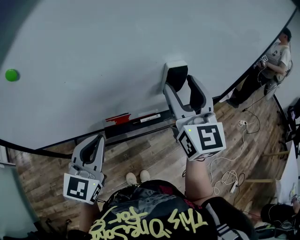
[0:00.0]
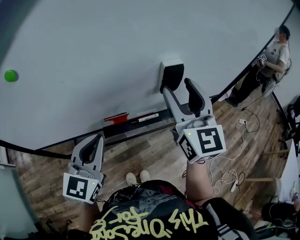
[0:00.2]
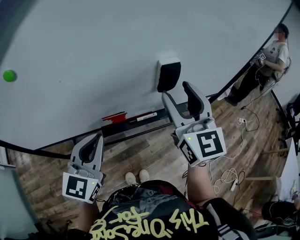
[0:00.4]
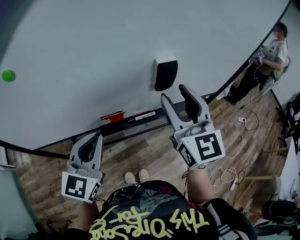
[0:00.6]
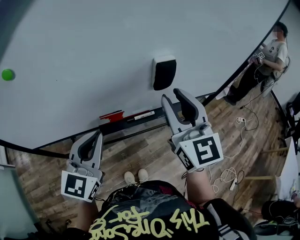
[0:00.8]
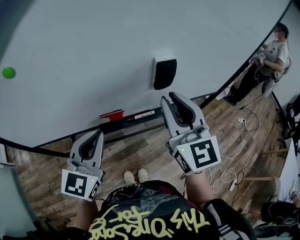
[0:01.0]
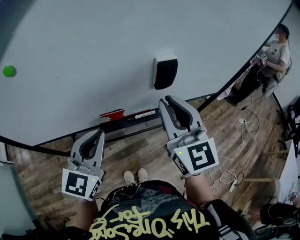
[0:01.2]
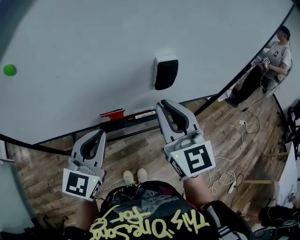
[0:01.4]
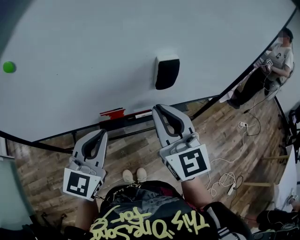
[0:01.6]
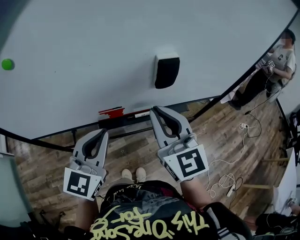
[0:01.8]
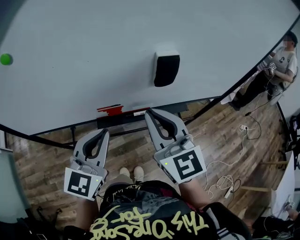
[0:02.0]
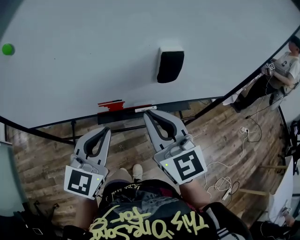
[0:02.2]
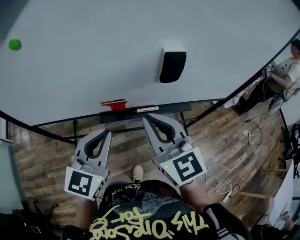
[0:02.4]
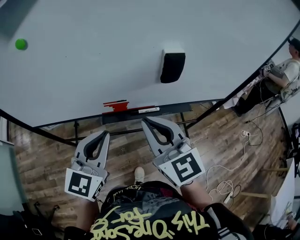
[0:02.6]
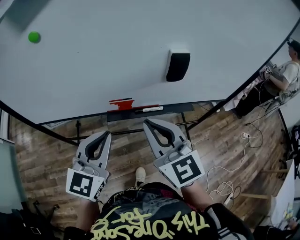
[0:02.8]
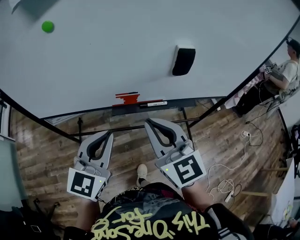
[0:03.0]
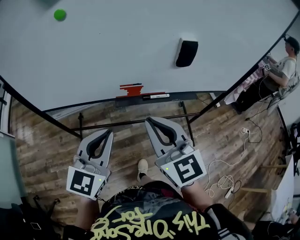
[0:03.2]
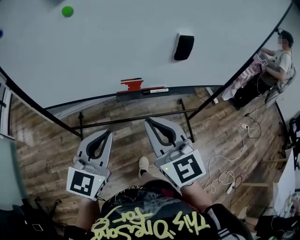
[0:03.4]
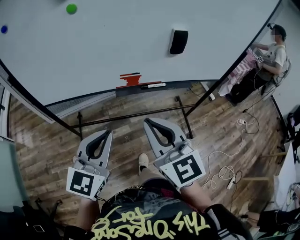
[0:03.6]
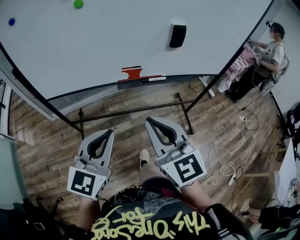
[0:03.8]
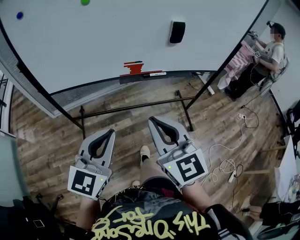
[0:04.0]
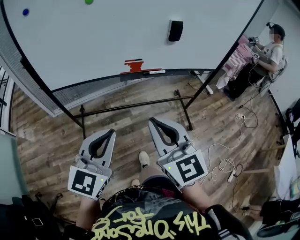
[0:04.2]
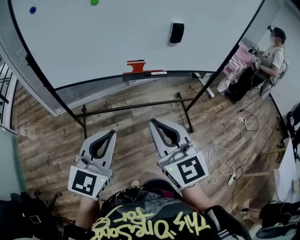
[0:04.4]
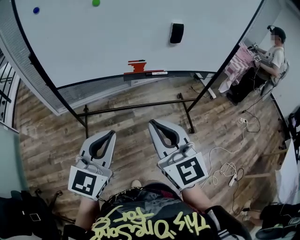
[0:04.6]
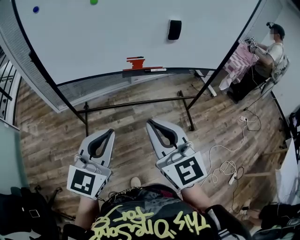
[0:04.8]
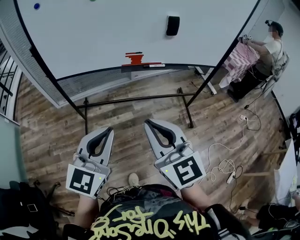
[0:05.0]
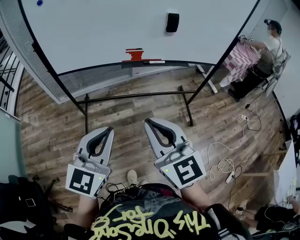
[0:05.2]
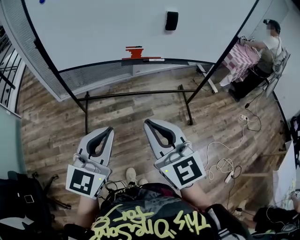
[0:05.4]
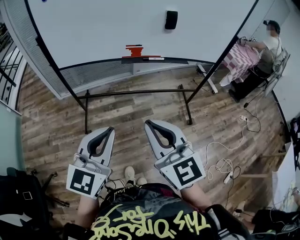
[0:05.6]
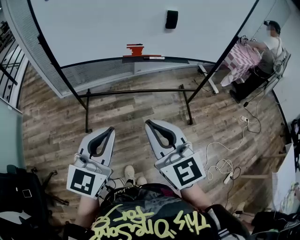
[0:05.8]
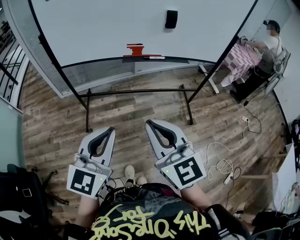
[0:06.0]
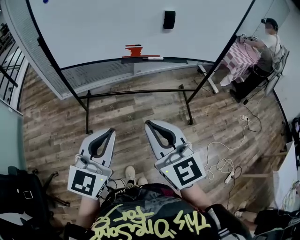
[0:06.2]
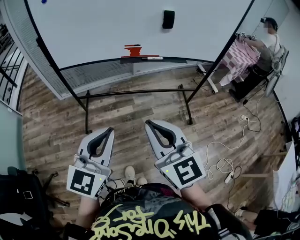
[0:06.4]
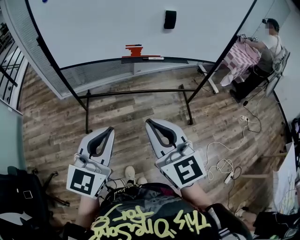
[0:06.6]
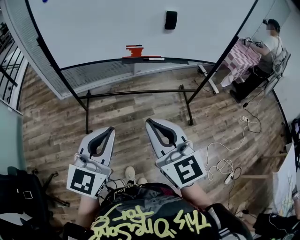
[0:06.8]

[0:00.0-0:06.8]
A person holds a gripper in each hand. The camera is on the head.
0:00.0 to 0:01.4: The right gripper moves backward, roughly 5 cm, and closes its fingers.
0:01.4 to 0:02.8: The right gripper shifts approximately 10 cm to the left and backward. Meanwhile the left gripper moves backward, roughly 5 cm.
0:02.8 to 0:04.0: Both grippers travel together backward, roughly 20 cm.
0:04.0 to 0:05.4: Both grippers move backward, about 15 cm.
0:05.4 to 0:06.8: The grippers move only a little.

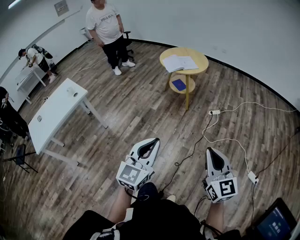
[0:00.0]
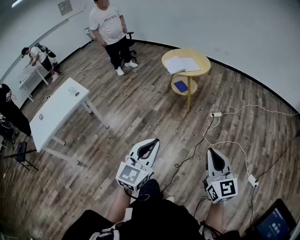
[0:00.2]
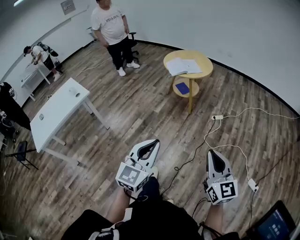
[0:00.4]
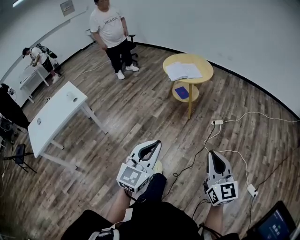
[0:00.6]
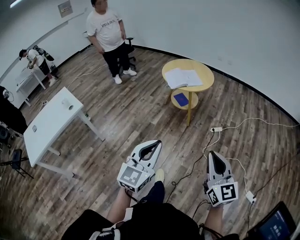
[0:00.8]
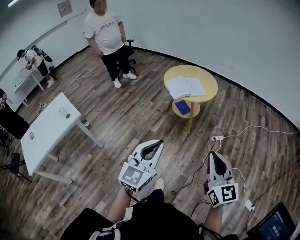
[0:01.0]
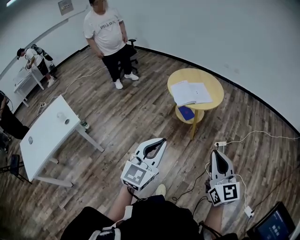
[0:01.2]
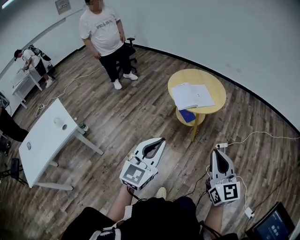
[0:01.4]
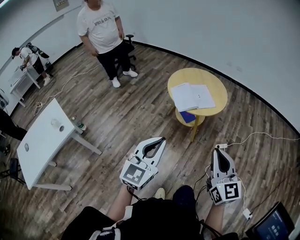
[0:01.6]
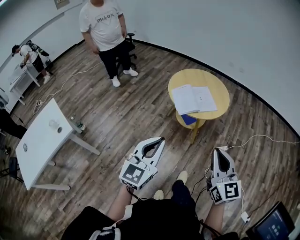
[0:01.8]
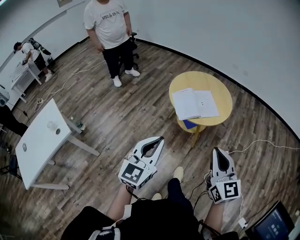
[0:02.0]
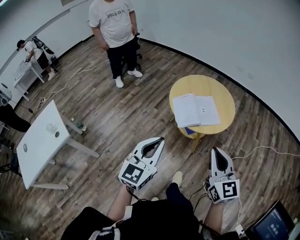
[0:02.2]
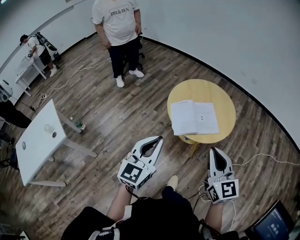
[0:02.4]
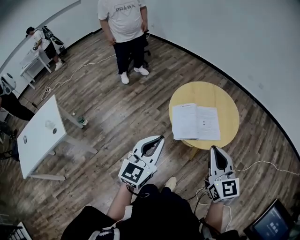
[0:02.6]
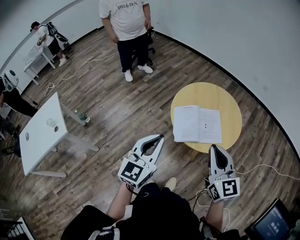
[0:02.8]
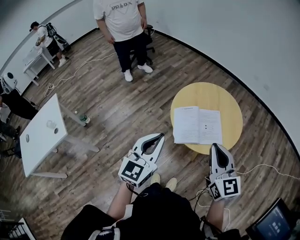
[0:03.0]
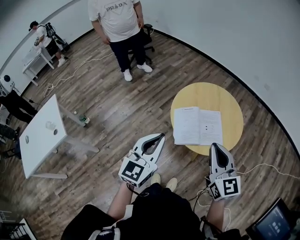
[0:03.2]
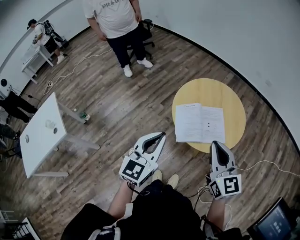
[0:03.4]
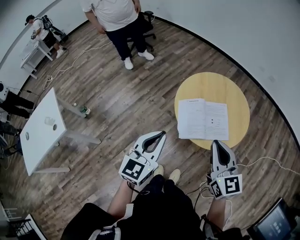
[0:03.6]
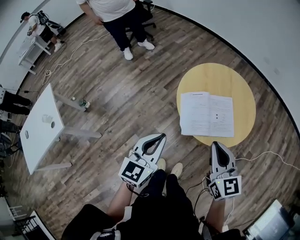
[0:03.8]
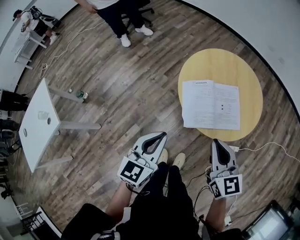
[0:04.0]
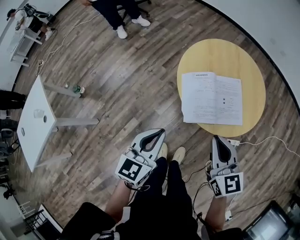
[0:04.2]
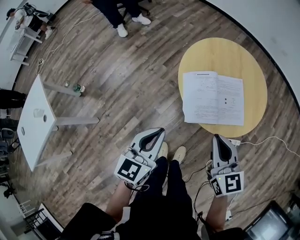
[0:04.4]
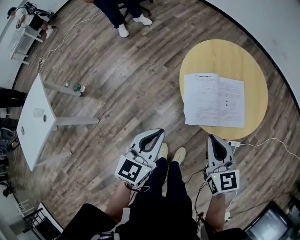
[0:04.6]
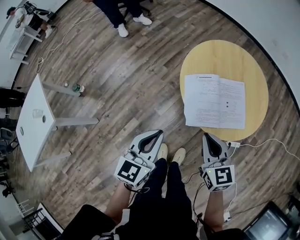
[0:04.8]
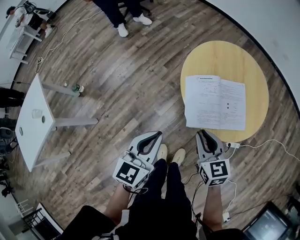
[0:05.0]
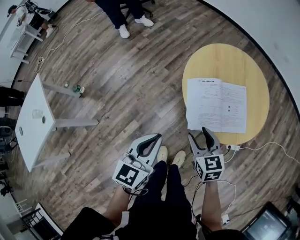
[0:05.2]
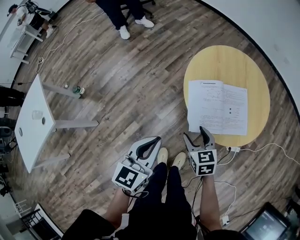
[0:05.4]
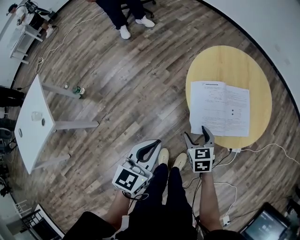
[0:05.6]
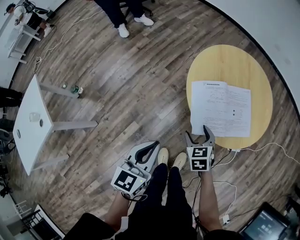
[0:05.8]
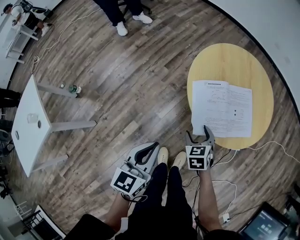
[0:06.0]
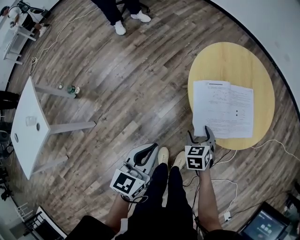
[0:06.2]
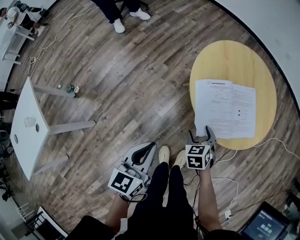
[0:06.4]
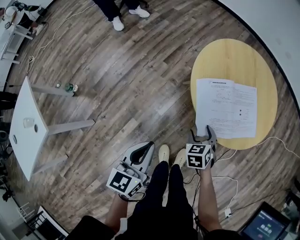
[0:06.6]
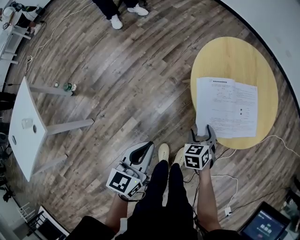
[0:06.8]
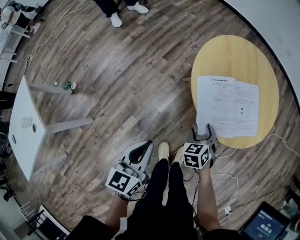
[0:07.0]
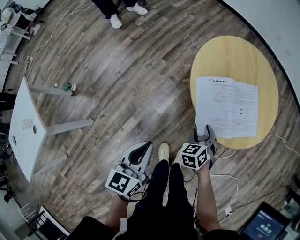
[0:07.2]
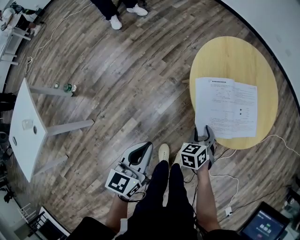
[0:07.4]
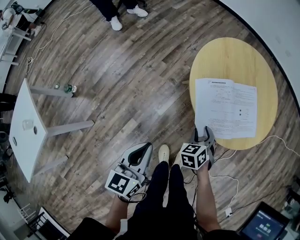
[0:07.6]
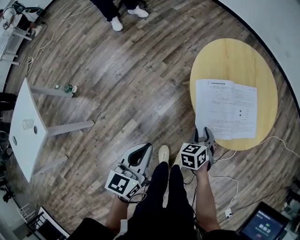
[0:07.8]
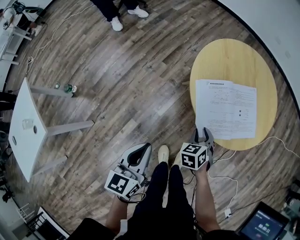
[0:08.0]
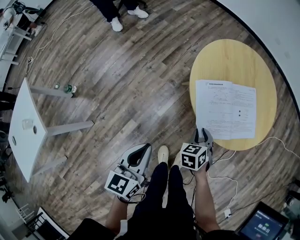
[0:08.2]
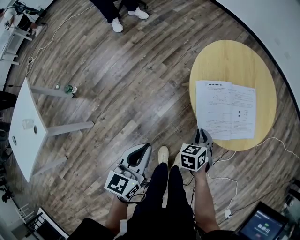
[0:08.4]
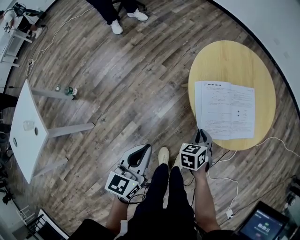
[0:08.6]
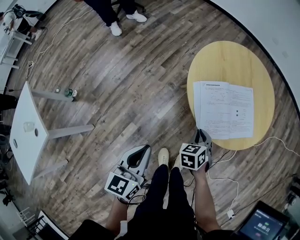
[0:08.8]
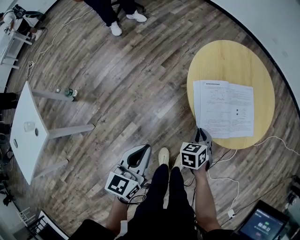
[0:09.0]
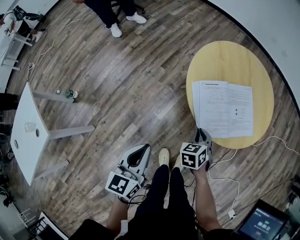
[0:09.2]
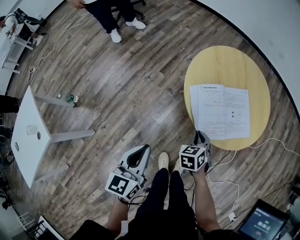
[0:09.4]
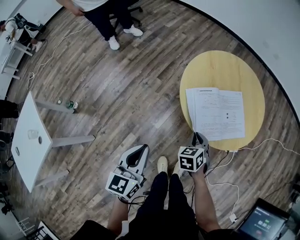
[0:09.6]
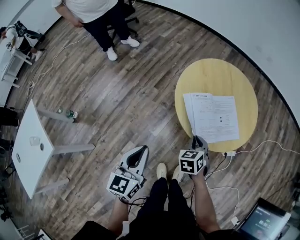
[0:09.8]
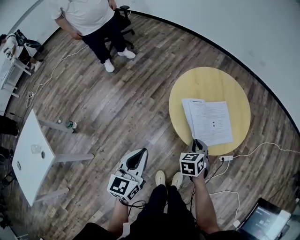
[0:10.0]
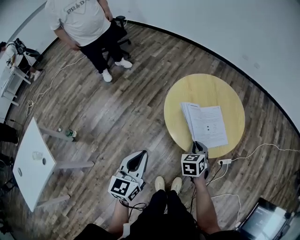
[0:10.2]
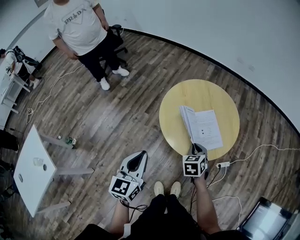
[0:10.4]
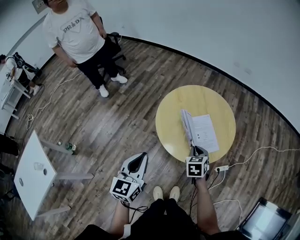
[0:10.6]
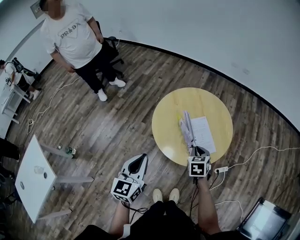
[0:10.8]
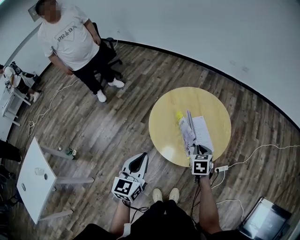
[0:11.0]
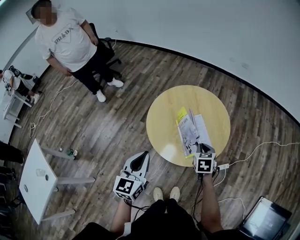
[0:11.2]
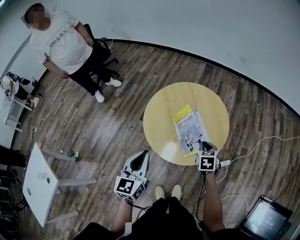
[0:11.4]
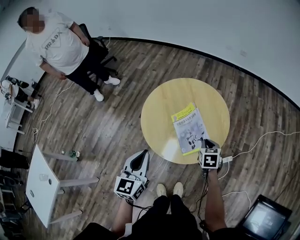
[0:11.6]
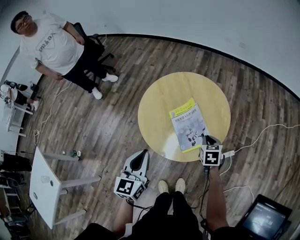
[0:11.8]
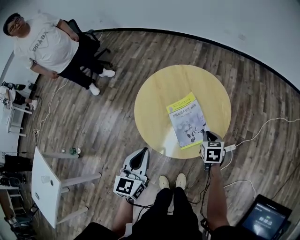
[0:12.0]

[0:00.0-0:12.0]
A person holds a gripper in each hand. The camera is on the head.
0:00.0 to 0:01.6: Both grippers are carried forward, roughly 50 cm.
0:01.6 to 0:03.0: Both grippers move forward, about 35 cm.
0:03.0 to 0:04.4: Both grippers travel together downward, roughly 15 cm.
0:04.4 to 0:06.0: The left gripper shifts about 10 cm to the left and downward, while the right gripper is displaced downward and to the left by roughly 25 cm, tilts its fingers about 30 degrees downward, and opens its fingers.
0:06.0 to 0:07.6: The left gripper moves approximately 5 cm; the right gripper closes.
0:07.6 to 0:09.0: The right gripper closes.
0:09.0 to 0:10.4: The right gripper travels upward and to the right by about 15 cm, while the left gripper moves upward and forward, about 15 cm.
0:10.4 to 0:12.0: Both grippers move to the right and forward, some 20 cm. The right gripper turns by about 20 degrees.

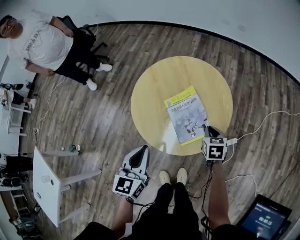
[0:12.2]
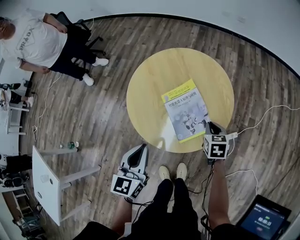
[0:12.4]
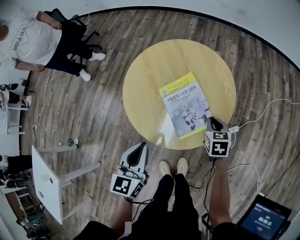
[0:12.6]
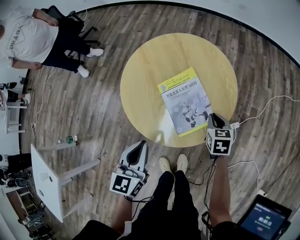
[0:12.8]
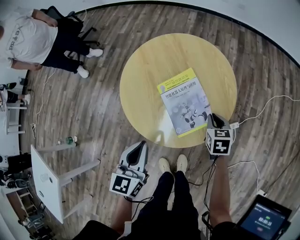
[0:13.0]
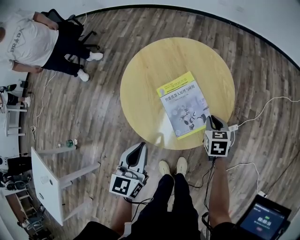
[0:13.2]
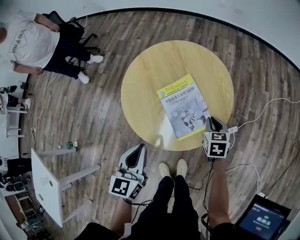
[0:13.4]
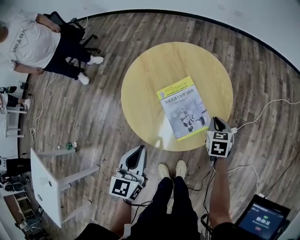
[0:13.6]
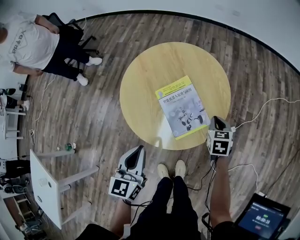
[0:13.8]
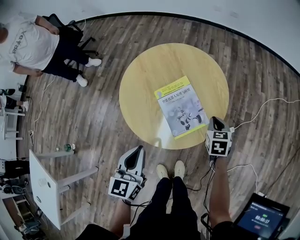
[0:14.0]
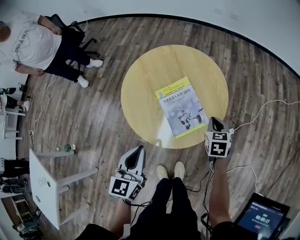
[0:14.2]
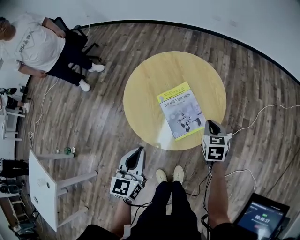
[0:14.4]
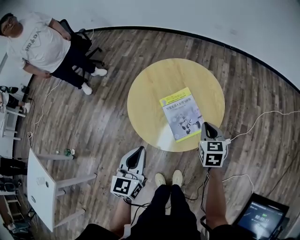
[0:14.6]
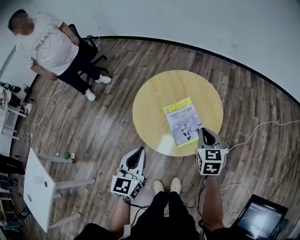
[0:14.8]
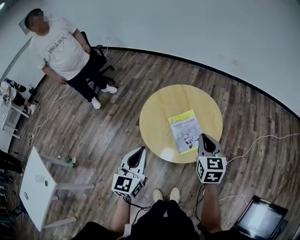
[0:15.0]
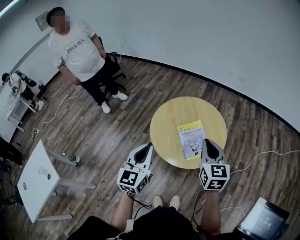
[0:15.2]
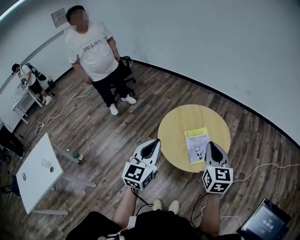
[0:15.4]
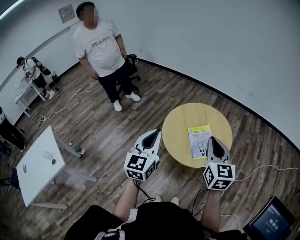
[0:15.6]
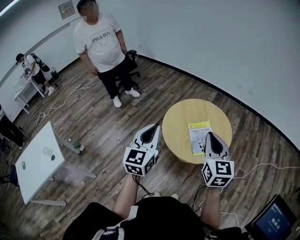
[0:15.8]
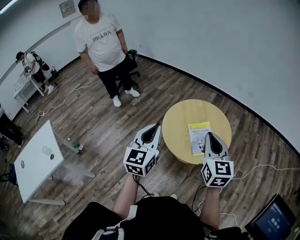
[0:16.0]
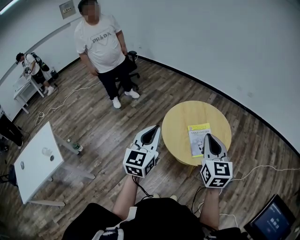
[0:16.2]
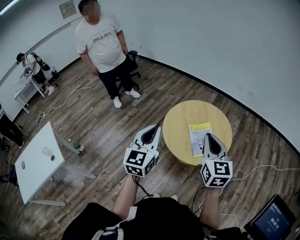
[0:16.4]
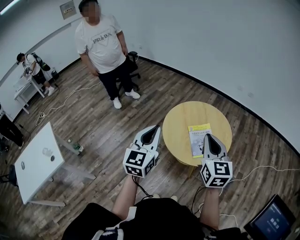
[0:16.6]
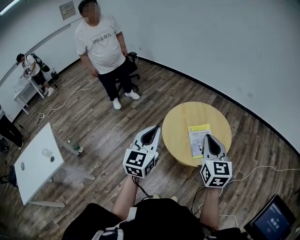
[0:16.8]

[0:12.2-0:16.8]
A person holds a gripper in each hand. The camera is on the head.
0:12.2 to 0:13.8: The grippers stay close to where they were, moving slightly.
0:13.8 to 0:15.2: The right gripper shifts roughly 35 cm upward and to the left, and tilts its fingers some 30 degrees upward; the left gripper is displaced upward by approximately 20 cm.
0:15.2 to 0:16.8: The left gripper travels upward and to the left by some 10 cm; the right gripper goes roughly 10 cm to the left, upward and backward.
